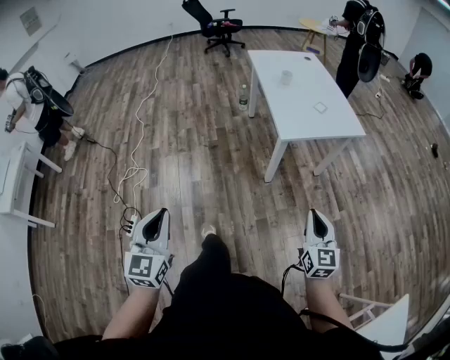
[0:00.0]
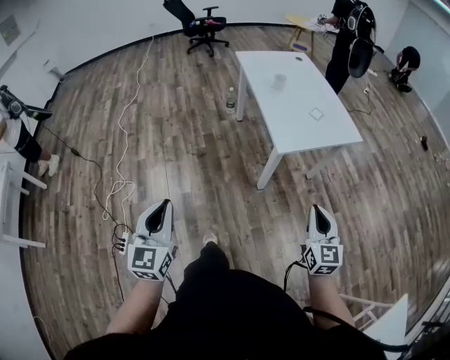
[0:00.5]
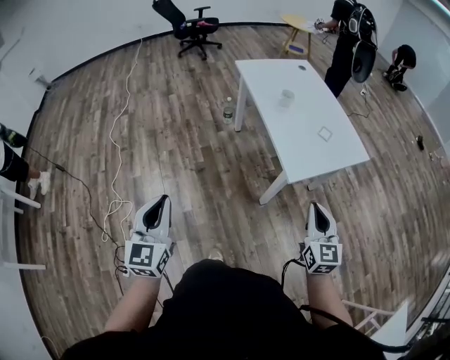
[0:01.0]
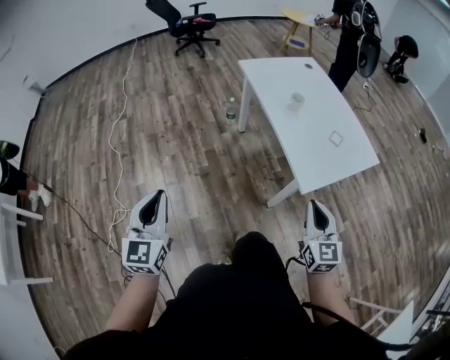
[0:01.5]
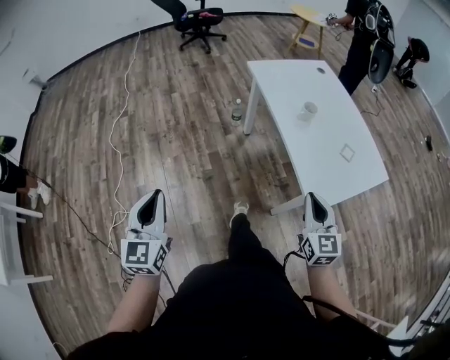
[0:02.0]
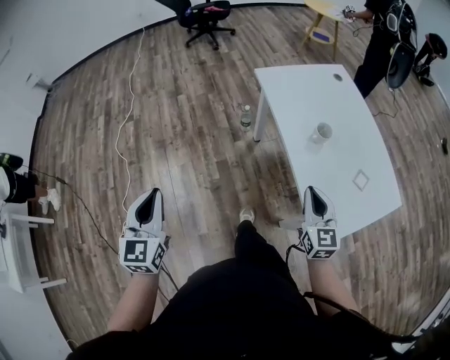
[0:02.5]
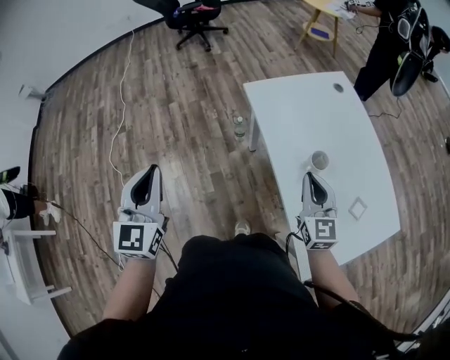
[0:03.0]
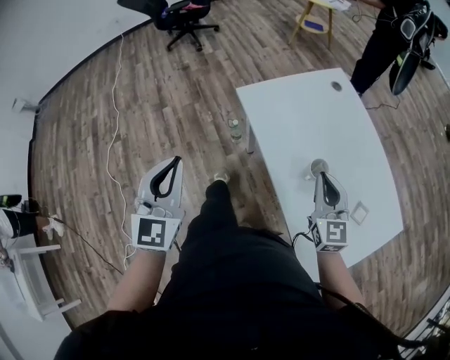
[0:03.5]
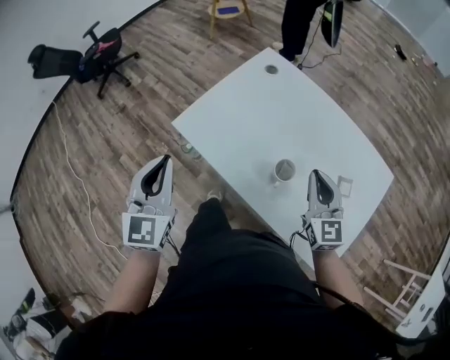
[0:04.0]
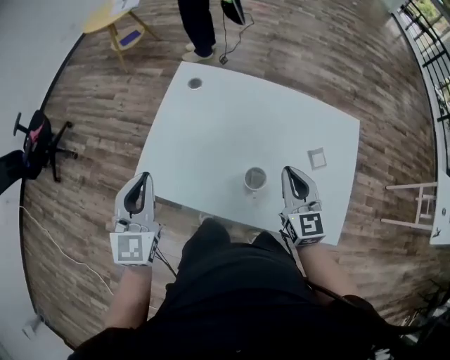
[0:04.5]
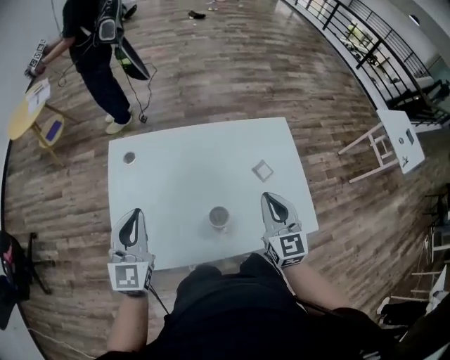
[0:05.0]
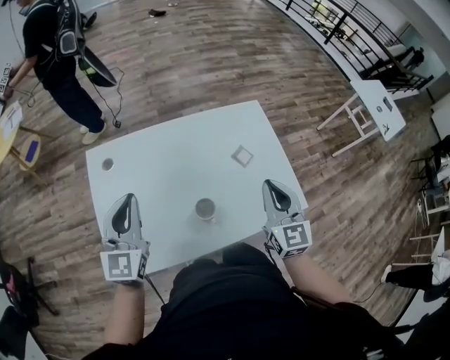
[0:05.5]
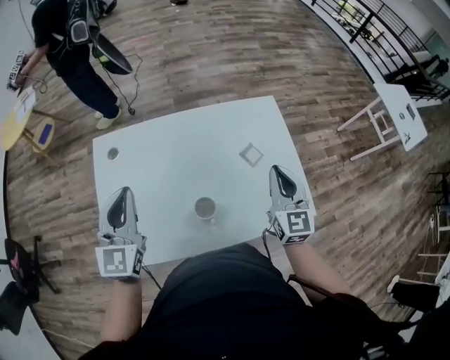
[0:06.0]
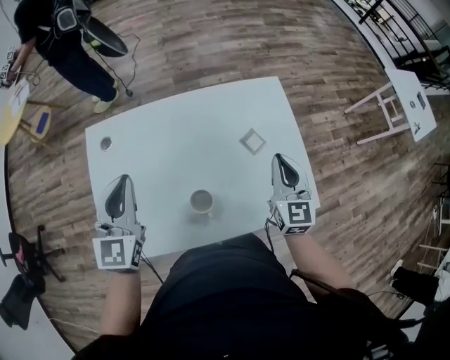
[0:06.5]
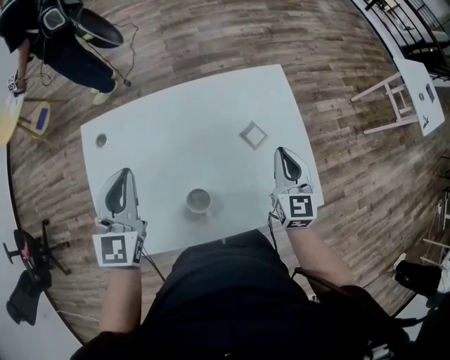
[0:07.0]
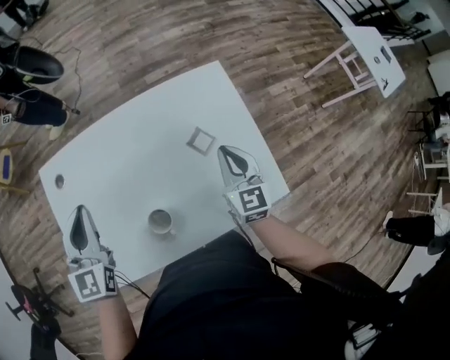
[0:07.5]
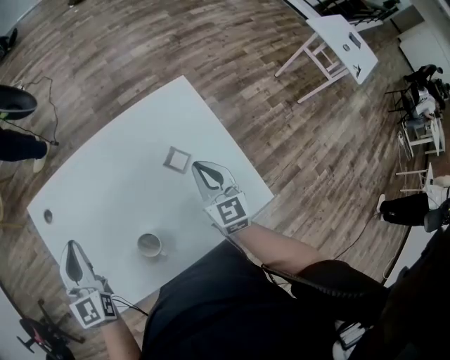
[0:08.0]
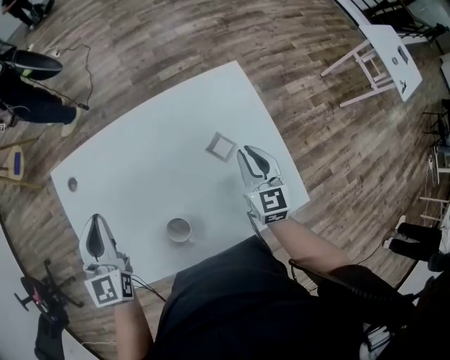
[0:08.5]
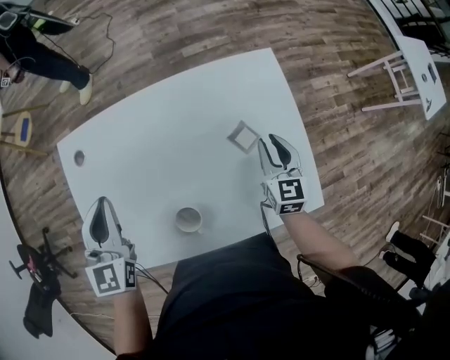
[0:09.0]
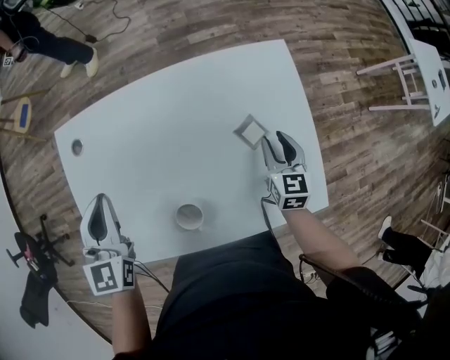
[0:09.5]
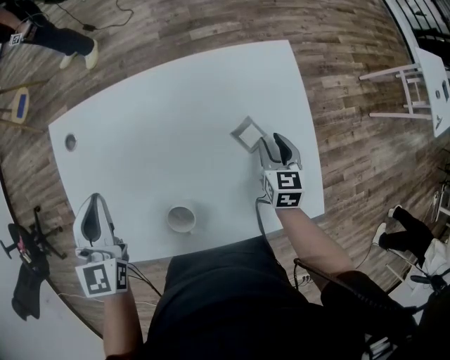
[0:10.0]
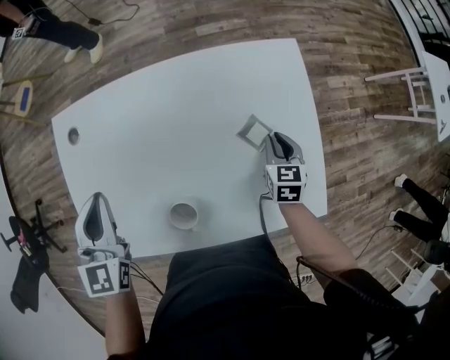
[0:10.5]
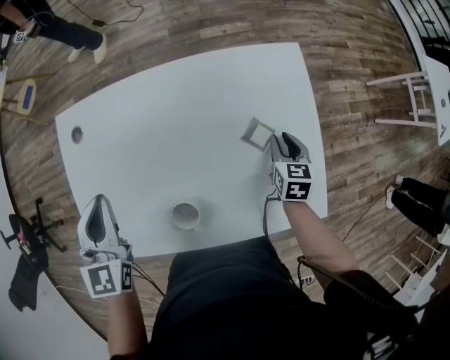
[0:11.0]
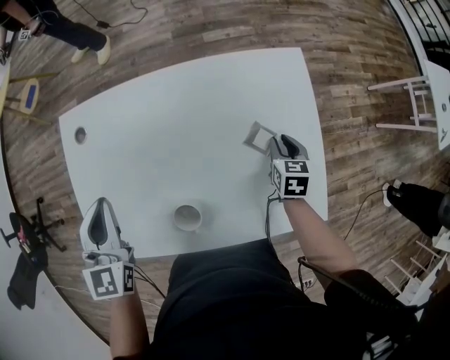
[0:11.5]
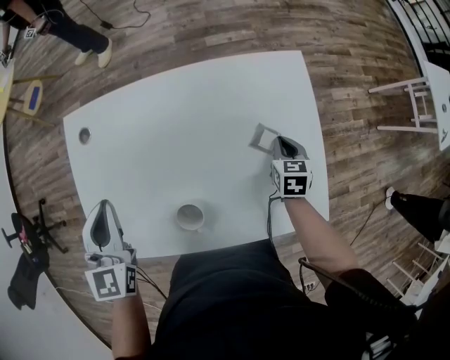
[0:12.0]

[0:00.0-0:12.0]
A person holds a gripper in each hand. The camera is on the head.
0:00.0 to 0:02.0: The left gripper heads forward, covering roughly 40 cm, while the right gripper travels forward and to the left by roughly 35 cm.
0:02.0 to 0:04.0: The left gripper changes place by approximately 50 cm, and swivels some 40 degrees, while the right gripper changes place by roughly 30 cm, and changes its angle by about 30 degrees.
0:04.0 to 0:06.0: The right gripper ends up approximately 15 cm from where it was, and turns by some 60 degrees. The left gripper changes place by about 25 cm, and turns by approximately 50 degrees.
0:06.0 to 0:08.0: The left gripper travels downward by some 5 cm, while the right gripper goes about 10 cm downward.
0:08.0 to 0:10.0: The right gripper is displaced downward by about 10 cm, rotates about 20 degrees, and opens its fingers.
0:10.0 to 0:12.0: The right gripper closes its fingers.

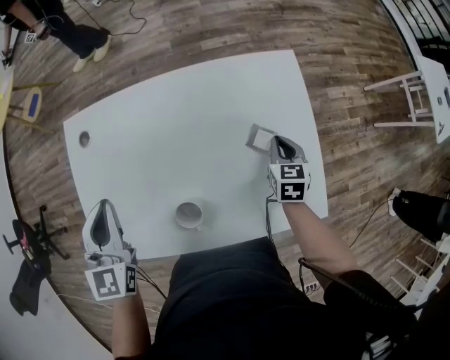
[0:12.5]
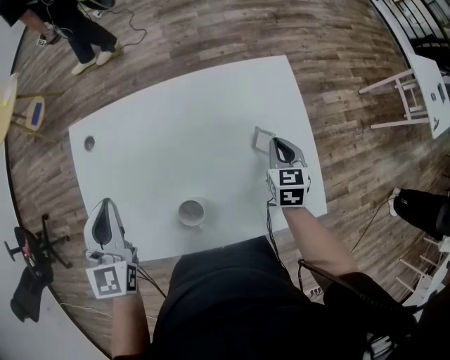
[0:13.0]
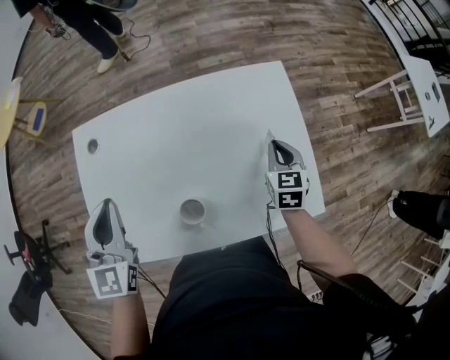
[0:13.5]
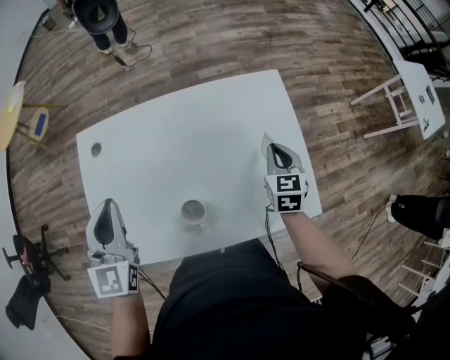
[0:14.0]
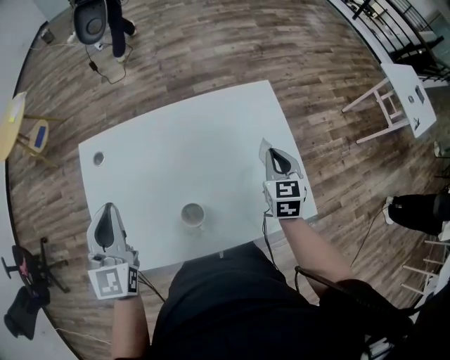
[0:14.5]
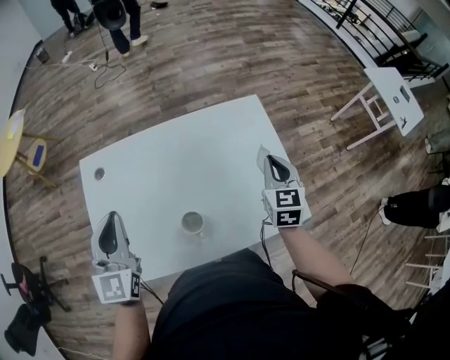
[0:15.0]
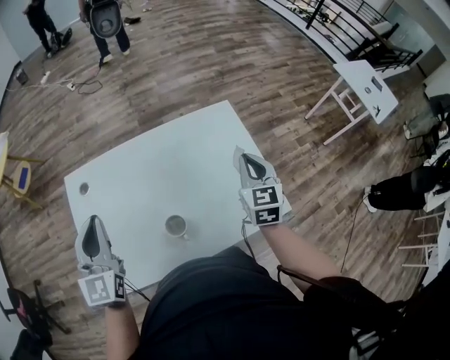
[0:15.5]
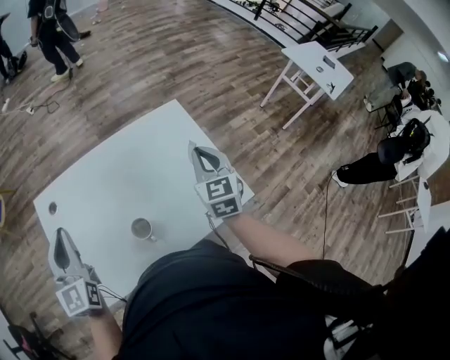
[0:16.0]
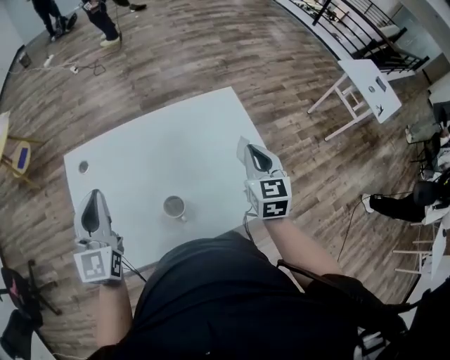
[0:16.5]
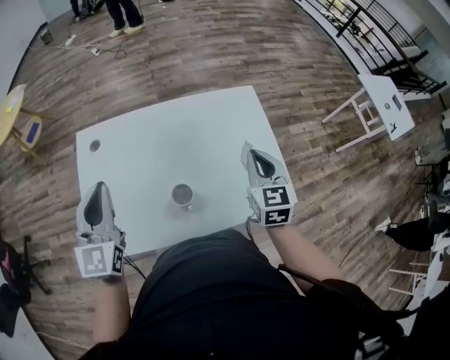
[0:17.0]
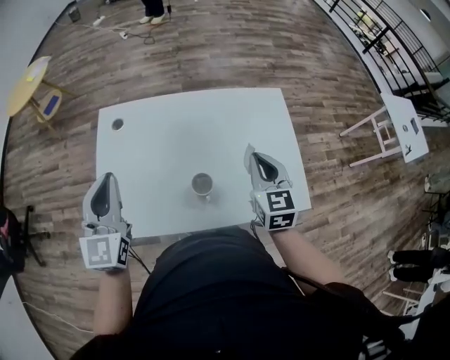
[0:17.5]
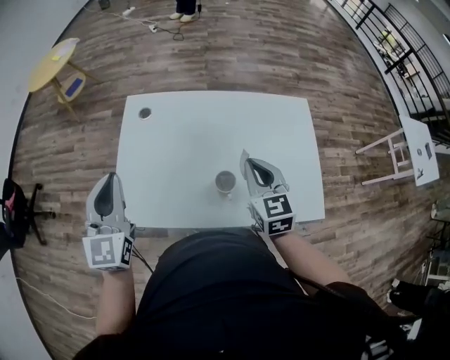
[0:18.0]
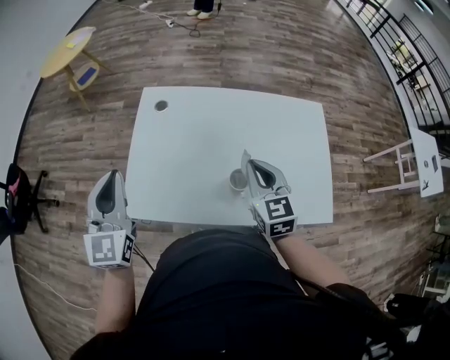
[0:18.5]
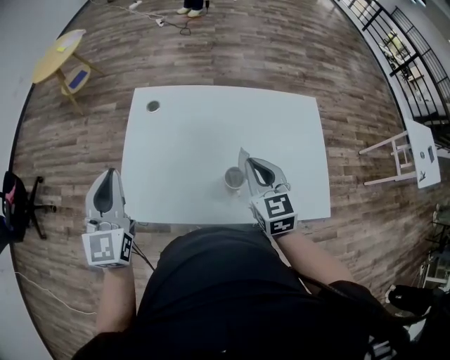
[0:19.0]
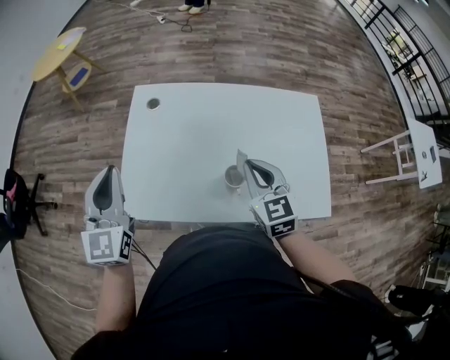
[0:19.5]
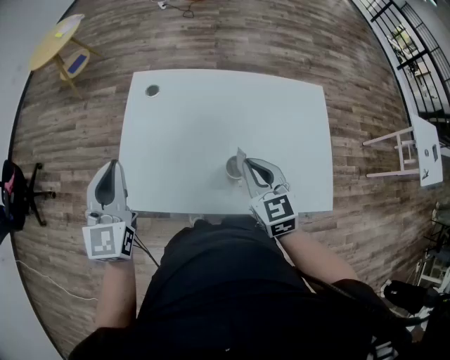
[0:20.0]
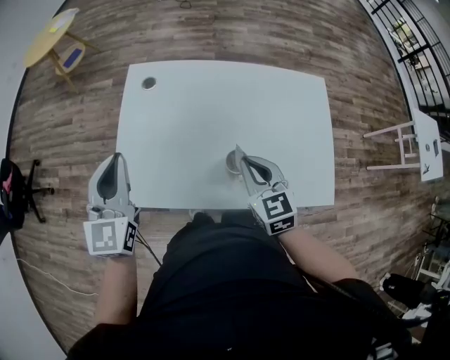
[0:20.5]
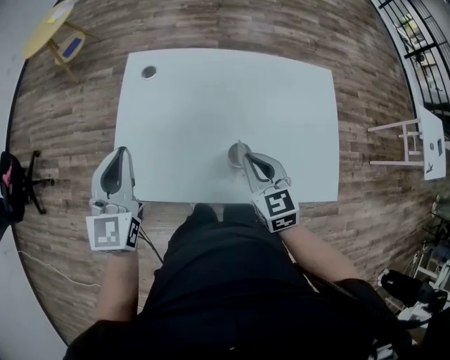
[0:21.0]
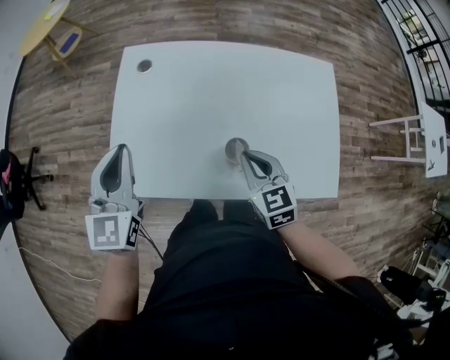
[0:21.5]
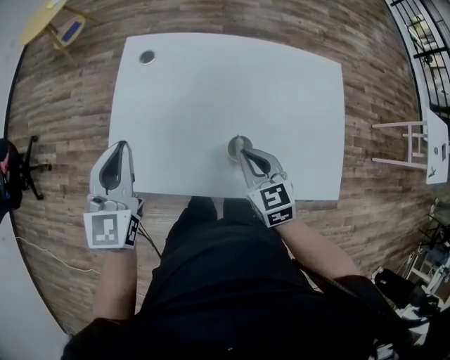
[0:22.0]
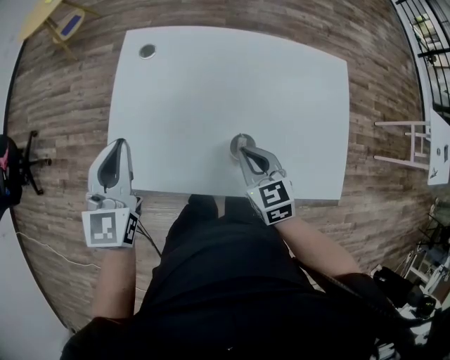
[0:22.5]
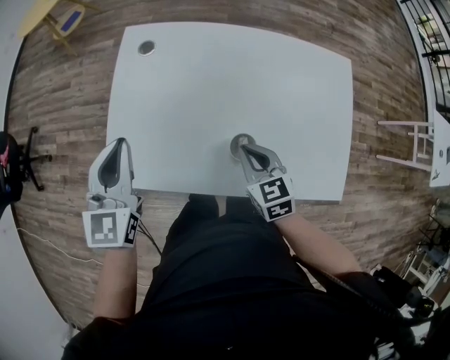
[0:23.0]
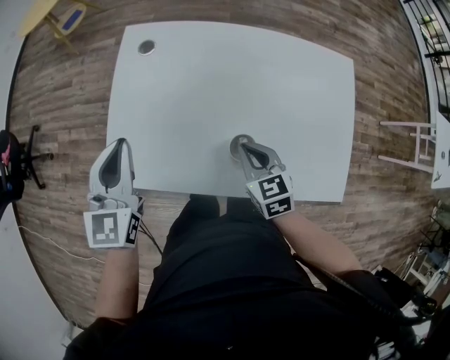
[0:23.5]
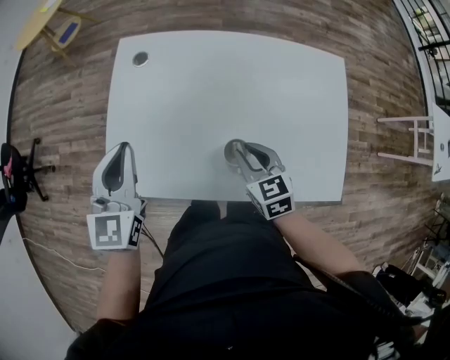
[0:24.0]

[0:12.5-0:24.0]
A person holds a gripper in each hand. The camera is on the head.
0:12.5 to 0:14.5: The right gripper goes about 10 cm upward.
0:14.5 to 0:16.5: The right gripper is displaced upward by some 10 cm.
0:16.5 to 0:18.5: The right gripper changes place by approximately 25 cm, and turns by about 30 degrees. Meanwhile the left gripper moves about 20 cm, and swivels some 20 degrees.
0:18.5 to 0:20.0: The grippers stay close to where they were, moving slightly.
0:20.0 to 0:22.0: The right gripper moves downward, roughly 5 cm.
0:22.0 to 0:24.0: The right gripper opens.

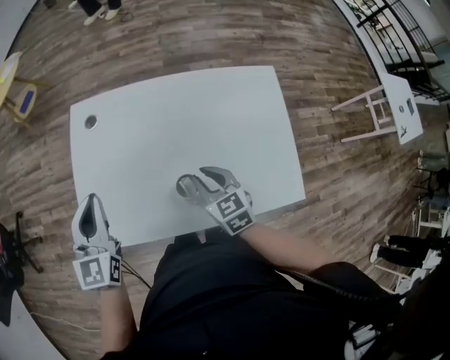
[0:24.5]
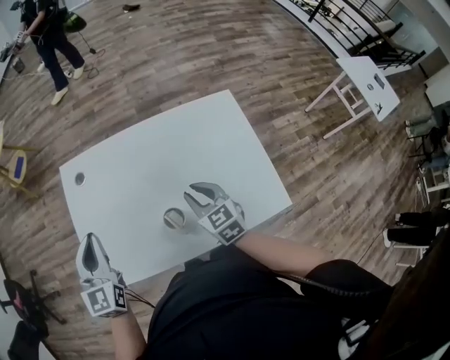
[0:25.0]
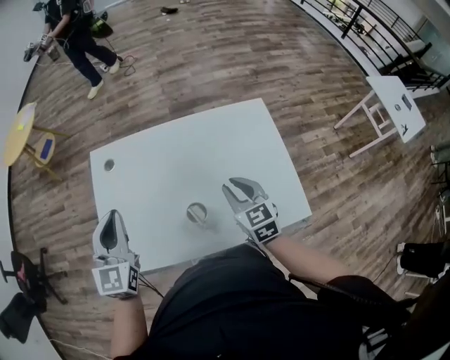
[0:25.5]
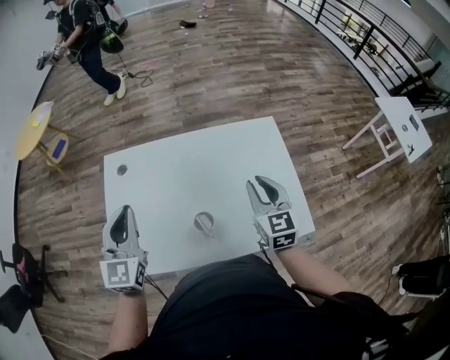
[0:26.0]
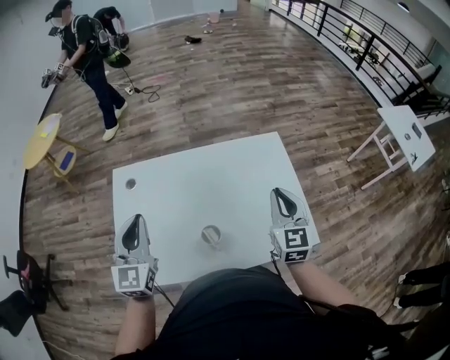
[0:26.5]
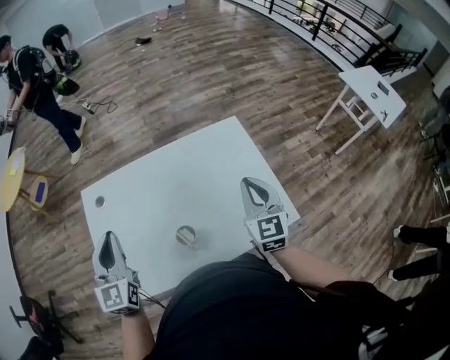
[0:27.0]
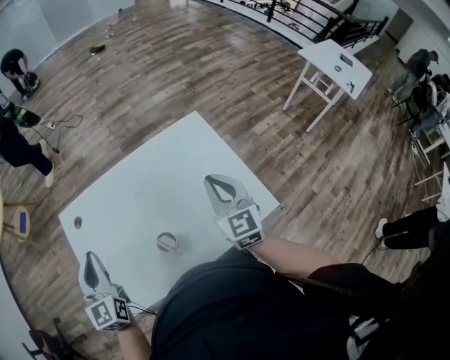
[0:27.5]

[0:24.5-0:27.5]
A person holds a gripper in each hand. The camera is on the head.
0:24.5 to 0:26.0: The right gripper is displaced to the right and upward by some 20 cm, and rotates approximately 30 degrees. The left gripper heads to the right and upward, covering about 10 cm.
0:26.0 to 0:27.5: The right gripper closes.
